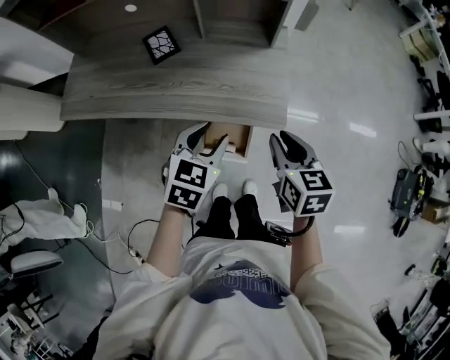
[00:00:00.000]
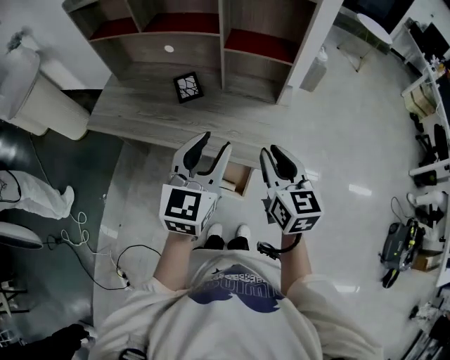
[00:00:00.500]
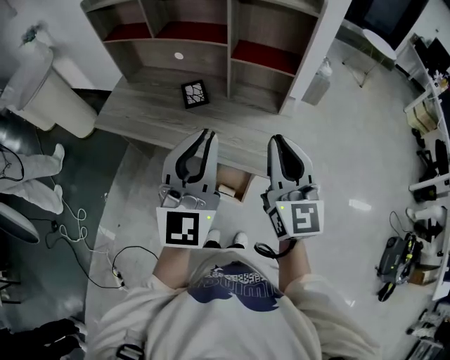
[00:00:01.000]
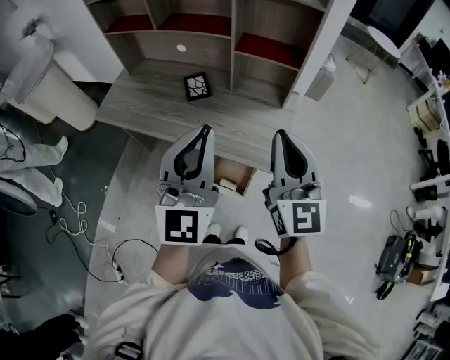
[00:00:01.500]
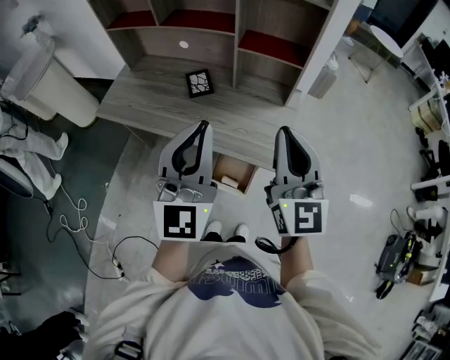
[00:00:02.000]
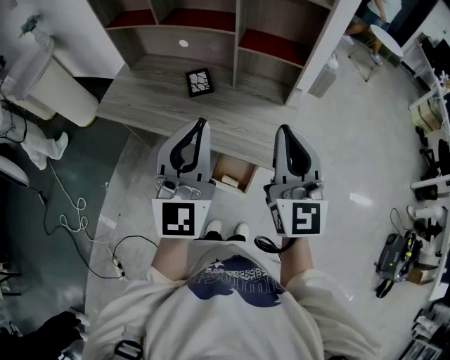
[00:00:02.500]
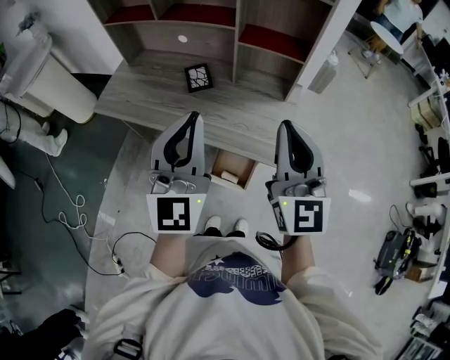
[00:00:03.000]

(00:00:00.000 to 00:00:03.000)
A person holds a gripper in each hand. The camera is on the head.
00:00:00.000 - 00:00:01.500: The grippers both shift upward by roughly 25 cm. The left gripper angles its fingers upward, by roughly 50 degrees, and closes; the right gripper tilts its fingers some 40 degrees upward.
00:00:01.500 - 00:00:03.000: The grippers move only a little.

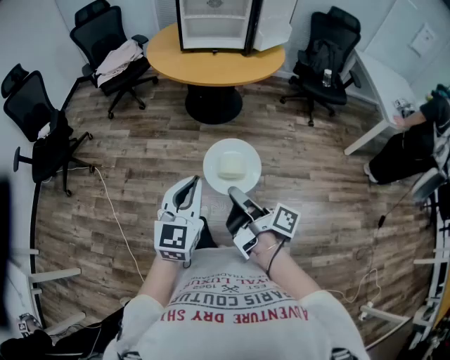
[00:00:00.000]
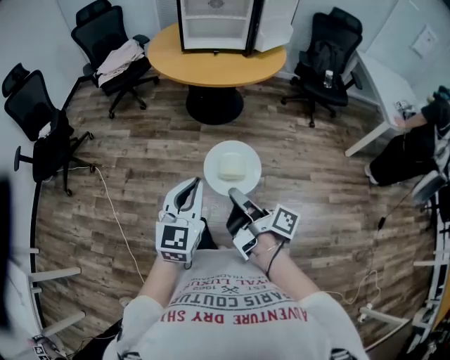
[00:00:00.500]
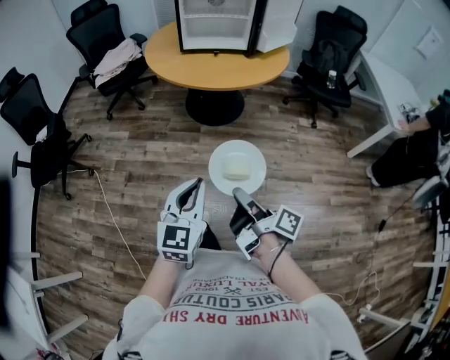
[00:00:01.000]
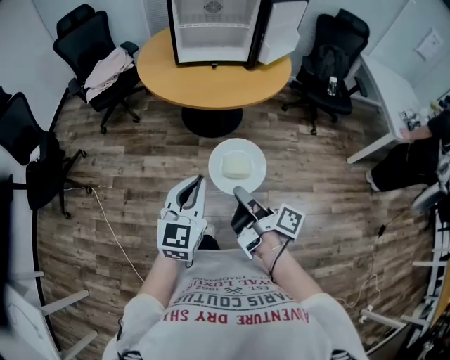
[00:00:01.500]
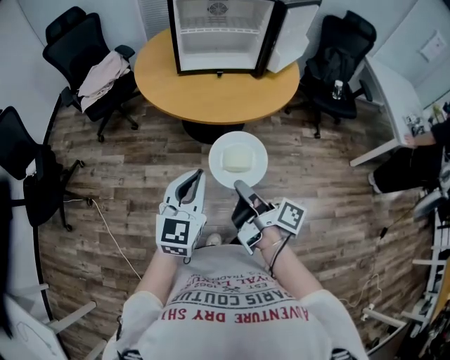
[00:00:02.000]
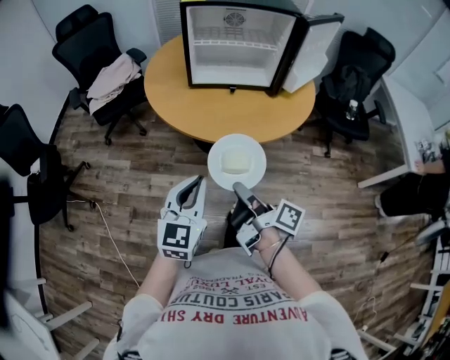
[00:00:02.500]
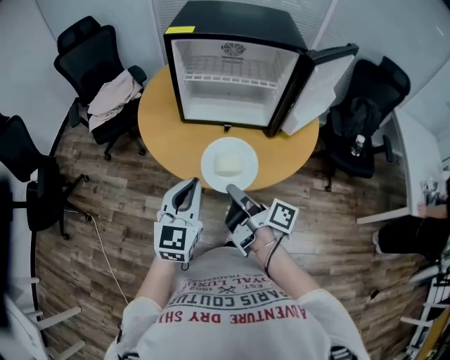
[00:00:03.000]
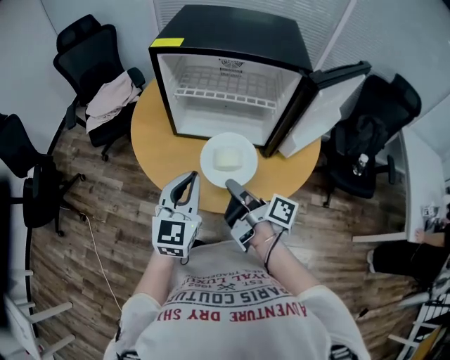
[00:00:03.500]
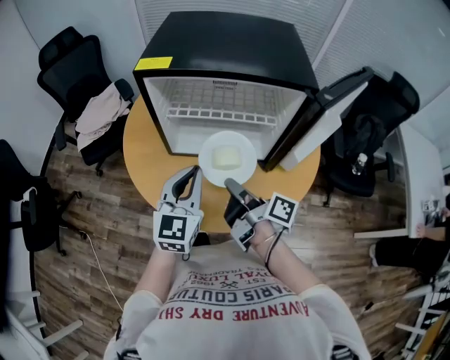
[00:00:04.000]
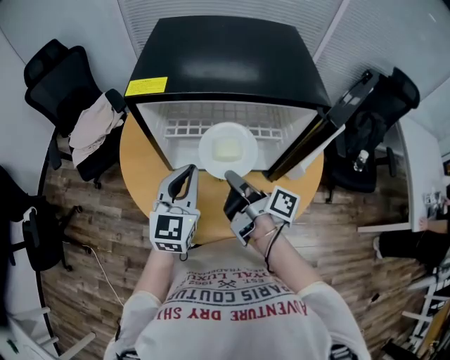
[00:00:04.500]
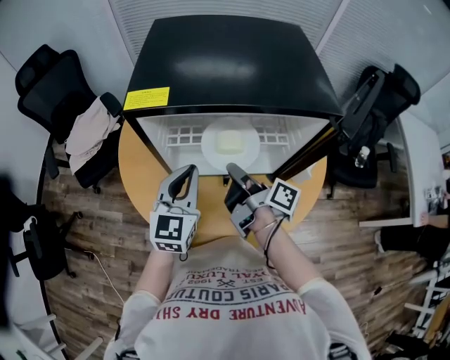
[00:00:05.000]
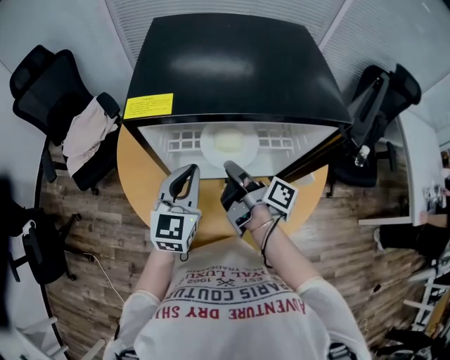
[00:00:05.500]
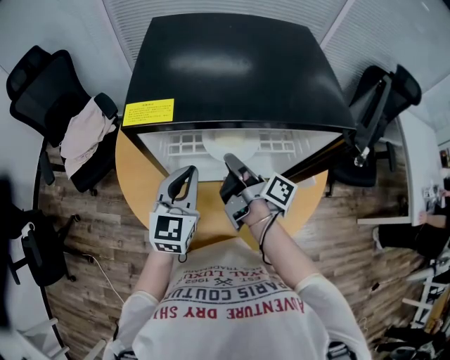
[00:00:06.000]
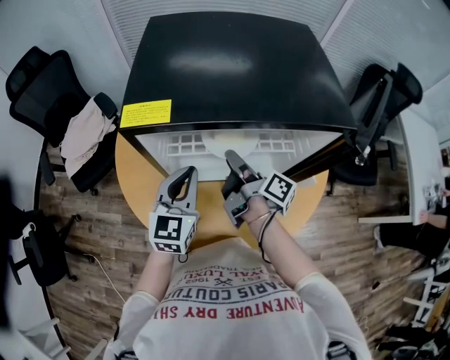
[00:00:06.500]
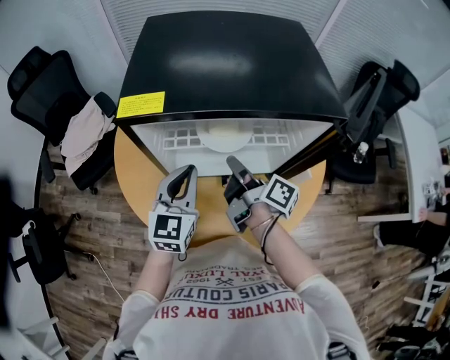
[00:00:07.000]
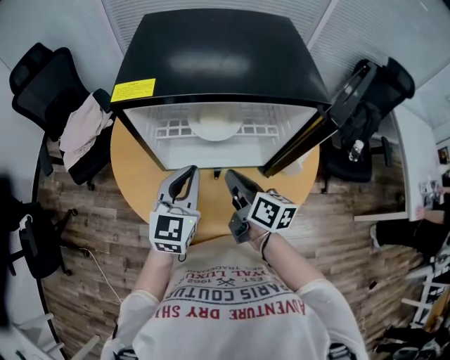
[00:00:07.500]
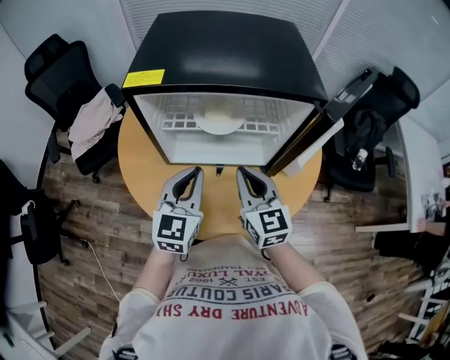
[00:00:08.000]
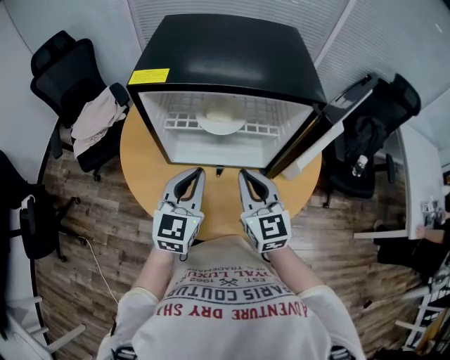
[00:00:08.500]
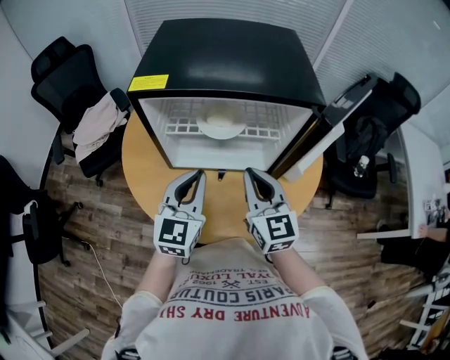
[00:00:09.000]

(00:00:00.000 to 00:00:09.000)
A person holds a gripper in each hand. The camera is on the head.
00:00:00.000 - 00:00:02.000: The left gripper moves about 30 cm.
00:00:02.000 - 00:00:04.500: The left gripper moves some 50 cm.
00:00:04.500 - 00:00:07.000: The left gripper moves approximately 5 cm.
00:00:07.000 - 00:00:09.000: The left gripper shifts by some 10 cm.

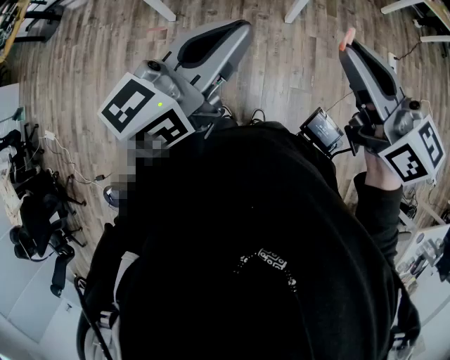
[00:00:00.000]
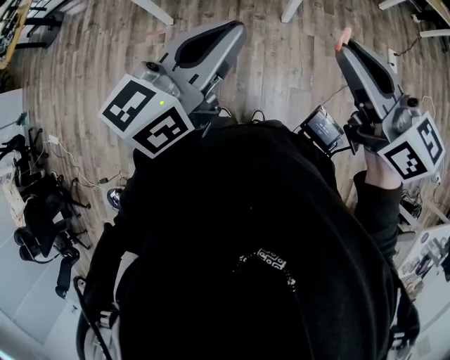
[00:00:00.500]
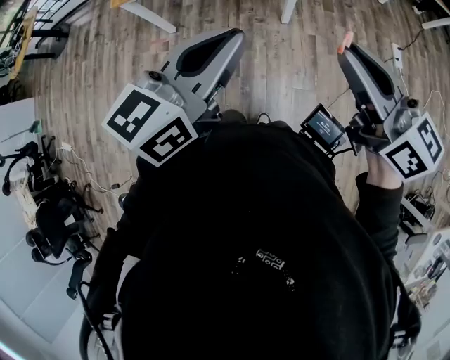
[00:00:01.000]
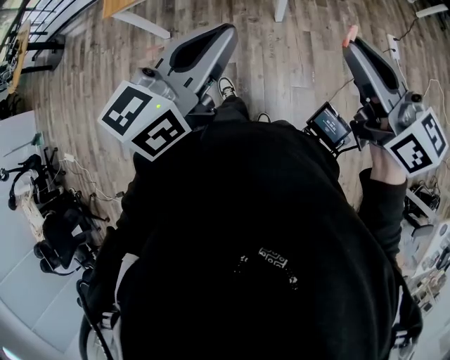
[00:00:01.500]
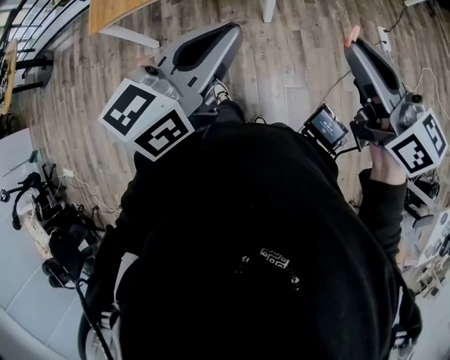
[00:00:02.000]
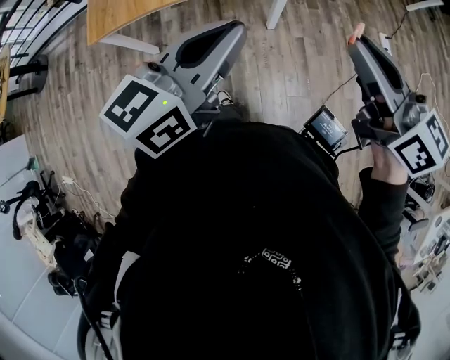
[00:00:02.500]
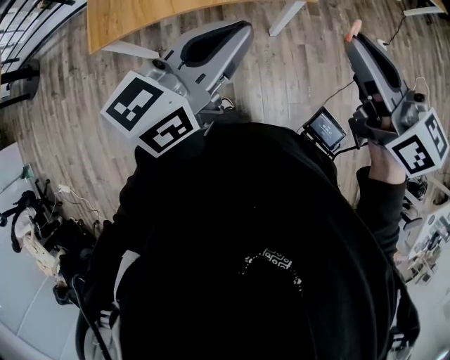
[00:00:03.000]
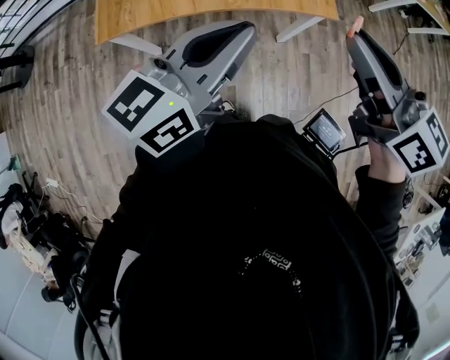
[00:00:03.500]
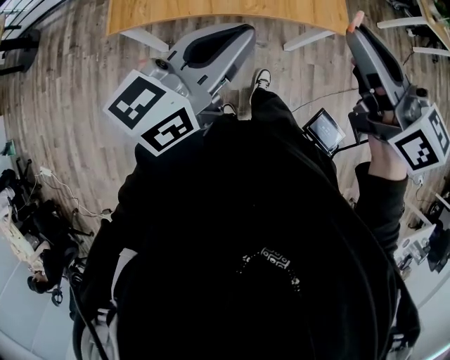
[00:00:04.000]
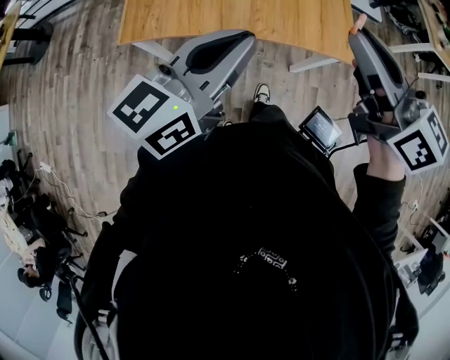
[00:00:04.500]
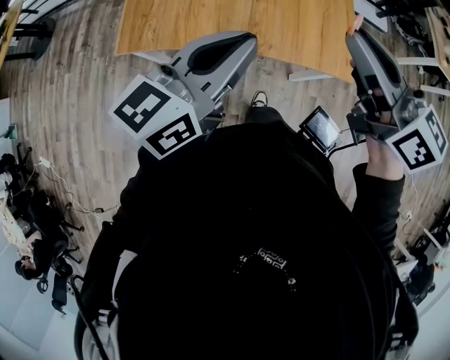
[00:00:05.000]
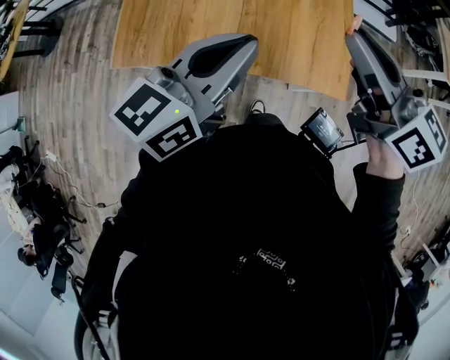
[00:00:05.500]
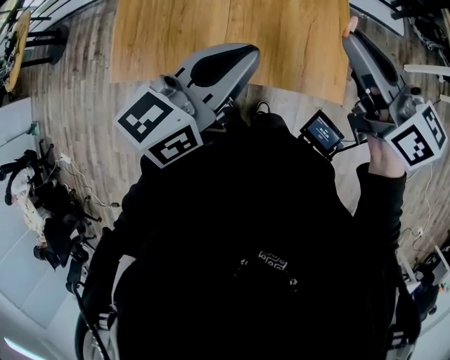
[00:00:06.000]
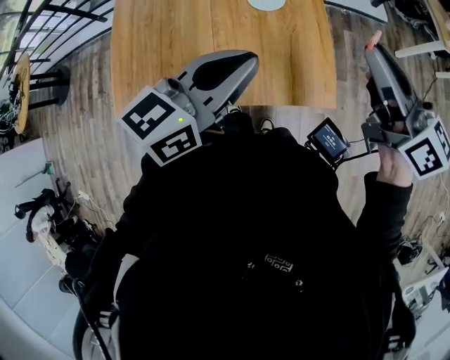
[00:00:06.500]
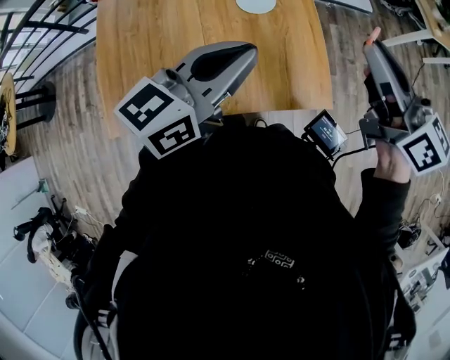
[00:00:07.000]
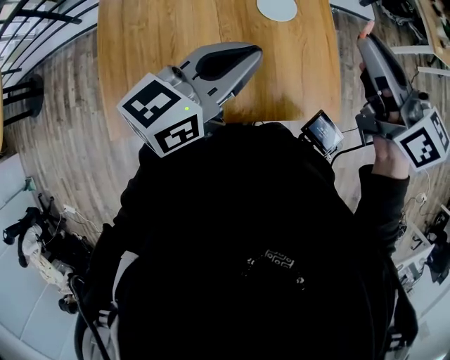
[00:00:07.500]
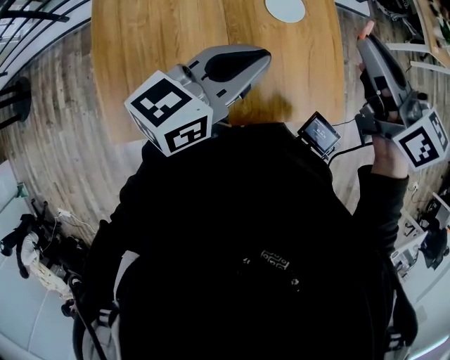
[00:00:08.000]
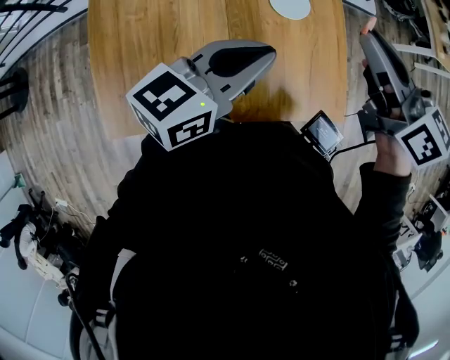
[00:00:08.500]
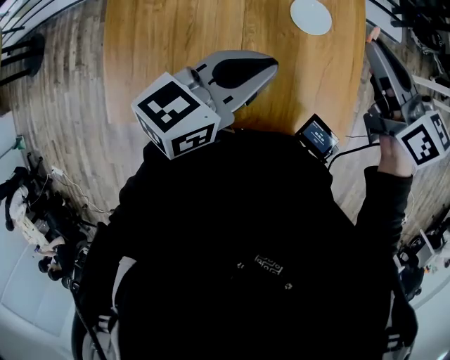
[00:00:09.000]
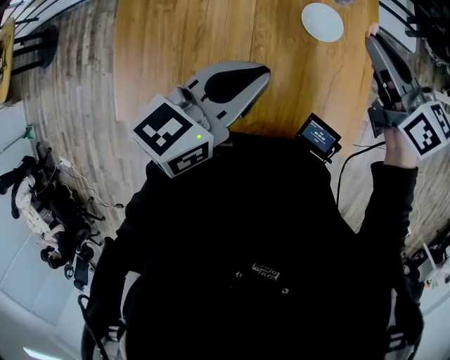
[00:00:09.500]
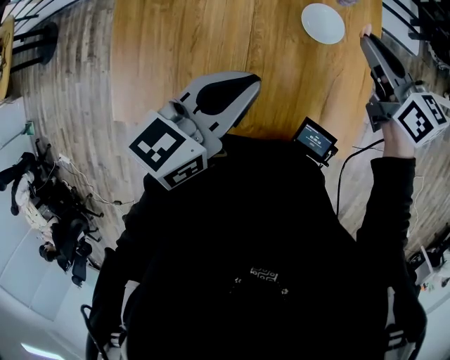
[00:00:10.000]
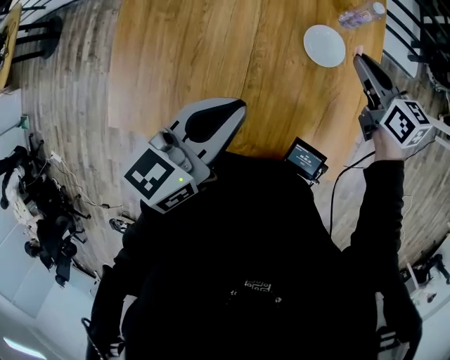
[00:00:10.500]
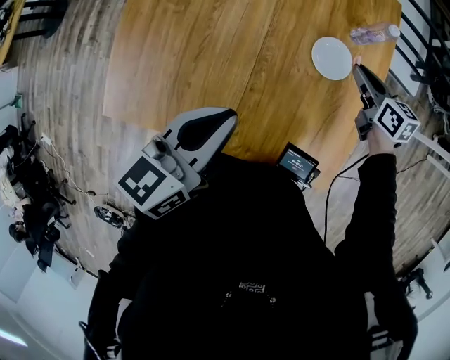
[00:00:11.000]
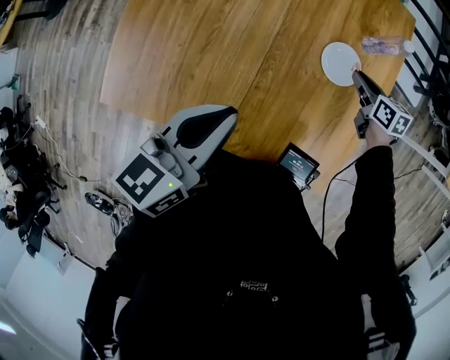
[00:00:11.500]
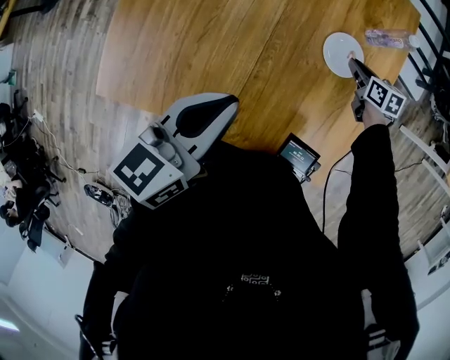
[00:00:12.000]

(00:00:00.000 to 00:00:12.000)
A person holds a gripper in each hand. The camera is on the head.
00:00:00.000 - 00:00:02.000: The left gripper moves to the right and forward, roughly 10 cm. The right gripper goes roughly 10 cm to the right.
00:00:02.000 - 00:00:04.000: Both grippers move to the left and forward, about 30 cm.
00:00:04.000 - 00:00:06.000: The two grippers go approximately 25 cm forward and to the right.
00:00:06.000 - 00:00:08.000: The grippers both shift forward and to the left by roughly 15 cm.
00:00:08.000 - 00:00:10.000: The right gripper heads downward and forward, covering roughly 20 cm; the left gripper ends up roughly 5 cm from where it was, and turns by about 20 degrees.
00:00:10.000 - 00:00:12.000: The right gripper heads downward, covering about 25 cm, and turns by about 30 degrees. The left gripper moves about 5 cm.

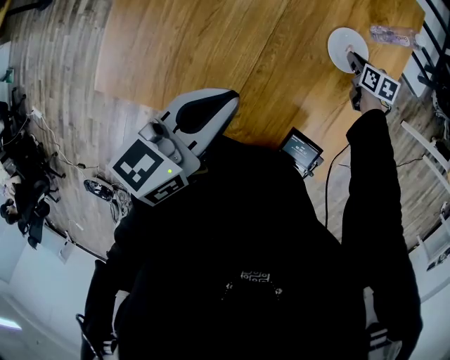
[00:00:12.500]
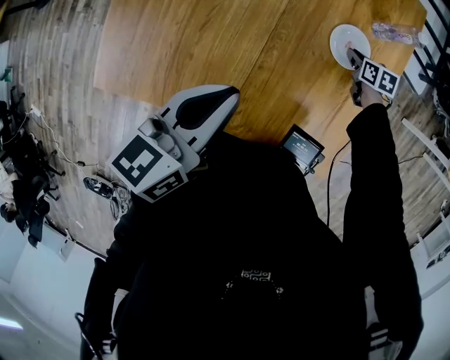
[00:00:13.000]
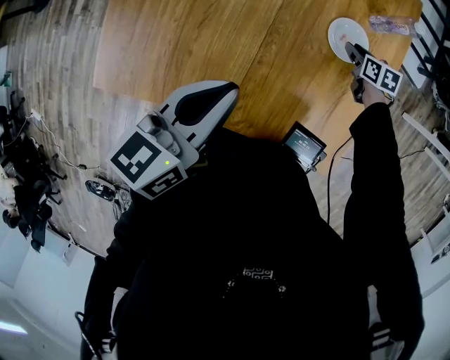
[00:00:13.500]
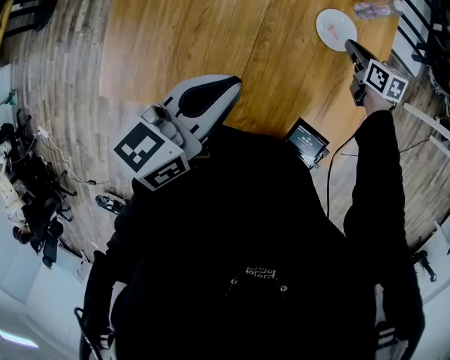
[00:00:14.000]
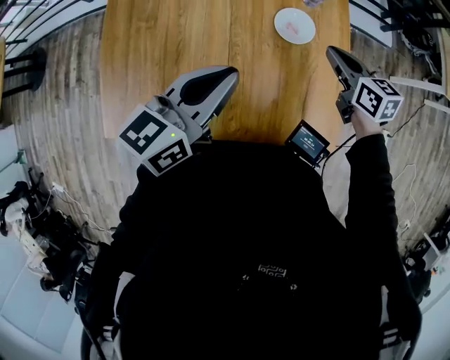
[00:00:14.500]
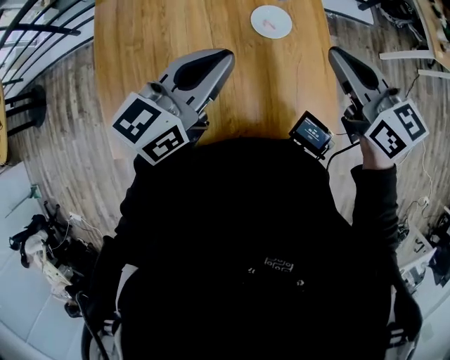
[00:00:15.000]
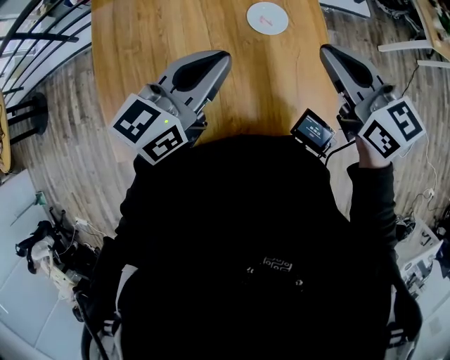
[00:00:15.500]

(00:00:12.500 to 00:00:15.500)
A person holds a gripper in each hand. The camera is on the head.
00:00:12.500 - 00:00:14.000: The right gripper heads upward, covering roughly 10 cm.
00:00:14.000 - 00:00:15.500: The left gripper goes about 5 cm forward, and rotates roughly 30 degrees; the right gripper is displaced upward and backward by approximately 30 cm, and rotates roughly 30 degrees.
